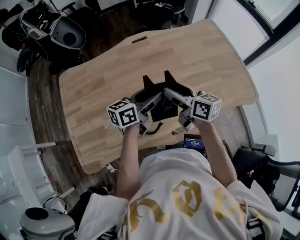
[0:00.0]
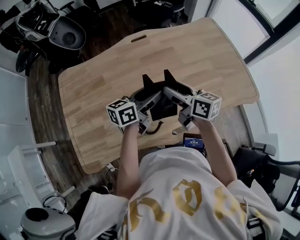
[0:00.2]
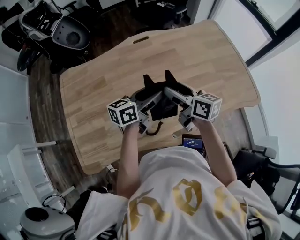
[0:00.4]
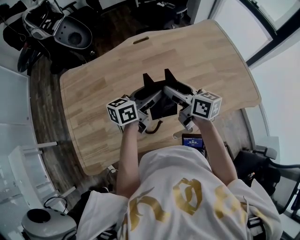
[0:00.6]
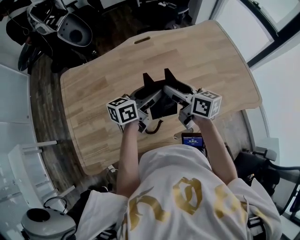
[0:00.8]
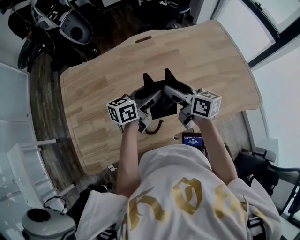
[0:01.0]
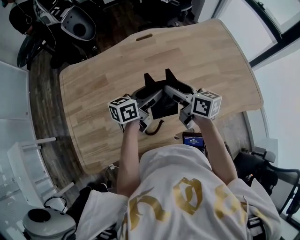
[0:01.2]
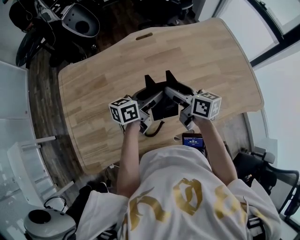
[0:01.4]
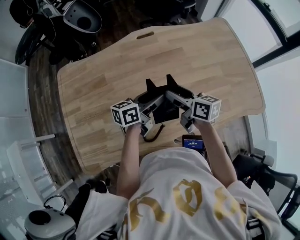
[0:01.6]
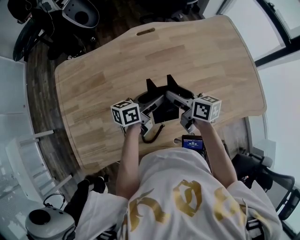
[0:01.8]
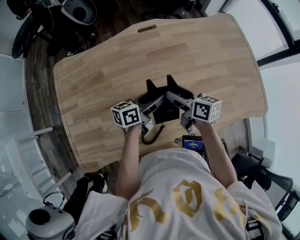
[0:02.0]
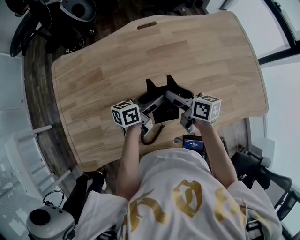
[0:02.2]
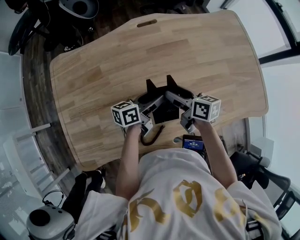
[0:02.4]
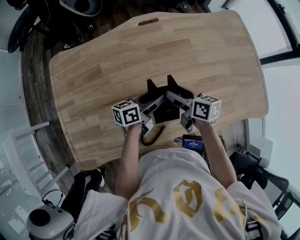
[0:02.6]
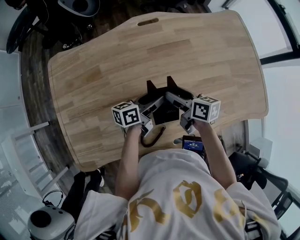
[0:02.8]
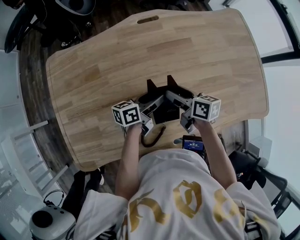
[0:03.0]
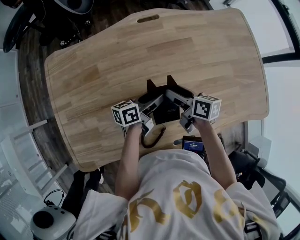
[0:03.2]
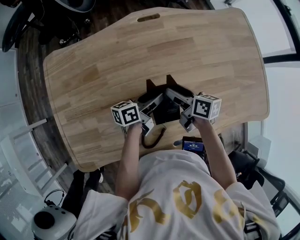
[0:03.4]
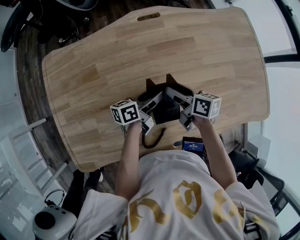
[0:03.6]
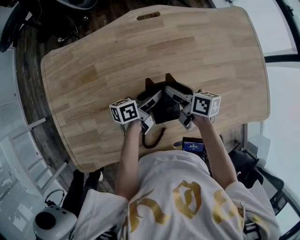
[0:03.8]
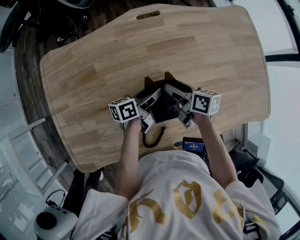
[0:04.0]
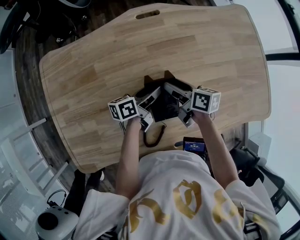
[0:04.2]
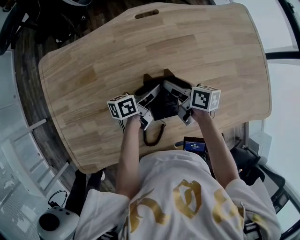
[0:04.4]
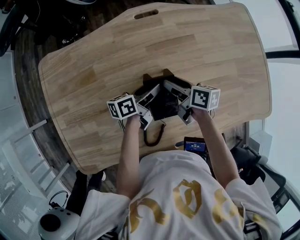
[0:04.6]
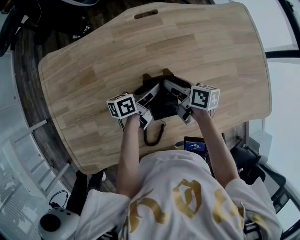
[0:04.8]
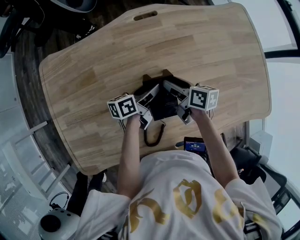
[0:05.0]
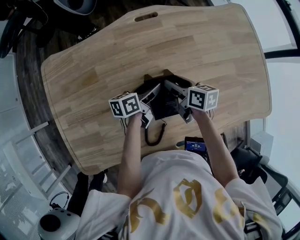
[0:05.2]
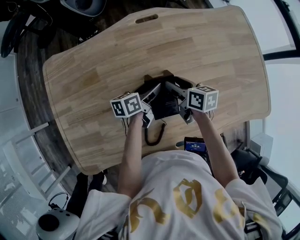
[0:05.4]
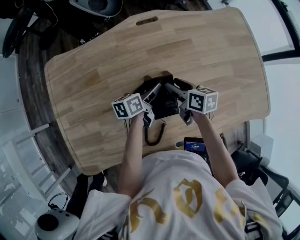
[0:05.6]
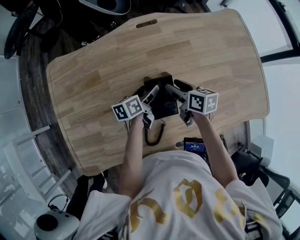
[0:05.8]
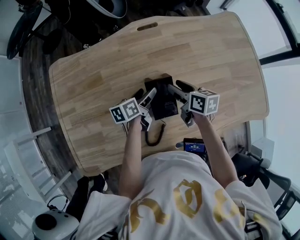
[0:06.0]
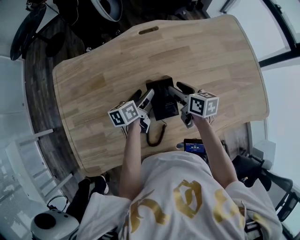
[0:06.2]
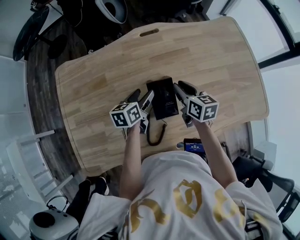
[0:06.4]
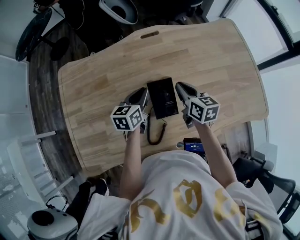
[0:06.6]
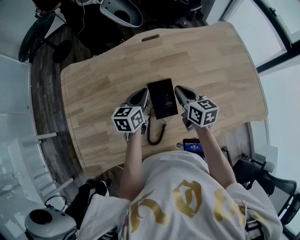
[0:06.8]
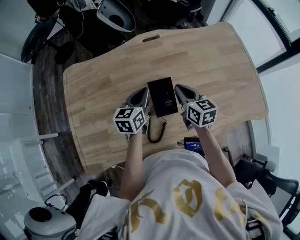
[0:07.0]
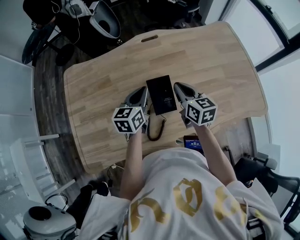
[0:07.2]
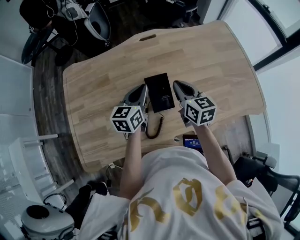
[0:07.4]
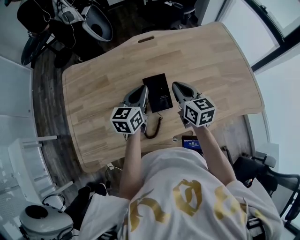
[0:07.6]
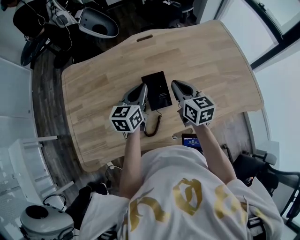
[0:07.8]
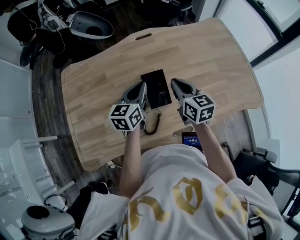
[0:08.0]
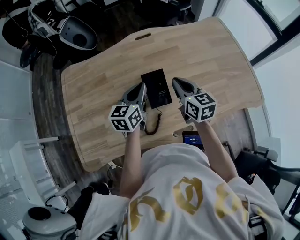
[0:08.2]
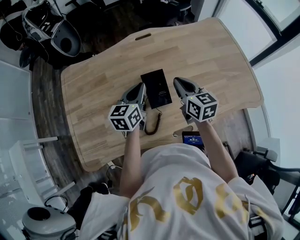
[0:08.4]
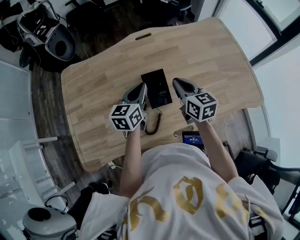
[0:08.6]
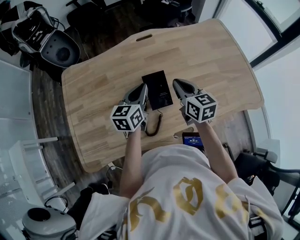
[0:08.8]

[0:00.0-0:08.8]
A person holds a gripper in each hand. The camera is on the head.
0:00.0 to 0:01.4: The right gripper changes place by some 5 cm.
0:01.4 to 0:03.0: The grippers both shift downward by approximately 10 cm.
0:03.0 to 0:04.4: Both grippers travel together forward, about 5 cm.
0:04.4 to 0:05.8: The grippers stay close to where they were, moving slightly.
0:05.8 to 0:07.4: The left gripper shifts approximately 15 cm upward, rotates roughly 40 degrees, and closes its fingers. Meanwhile the right gripper goes roughly 15 cm upward and backward, changes its angle by some 30 degrees, and closes its fingers.
0:07.4 to 0:08.8: There are only small adjustments of the grippers.

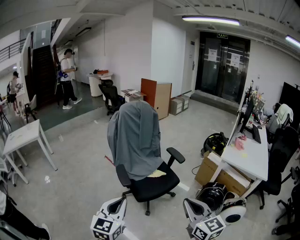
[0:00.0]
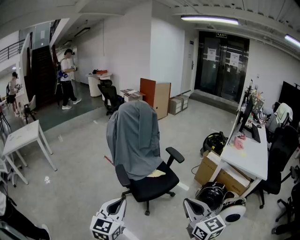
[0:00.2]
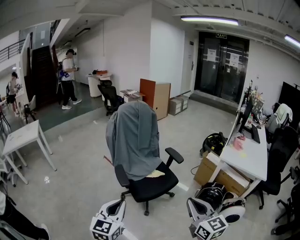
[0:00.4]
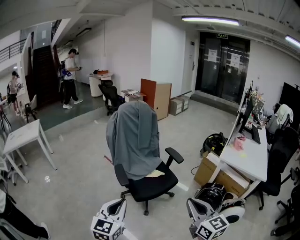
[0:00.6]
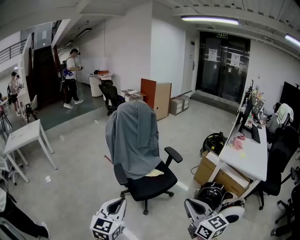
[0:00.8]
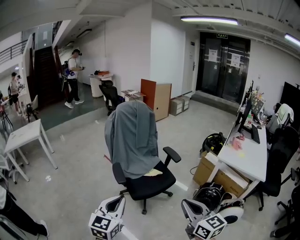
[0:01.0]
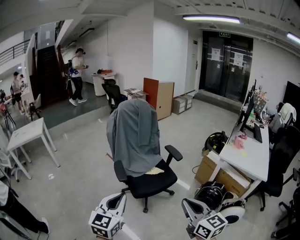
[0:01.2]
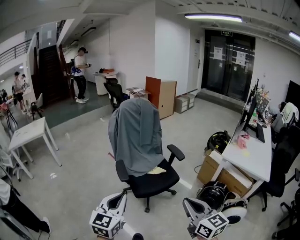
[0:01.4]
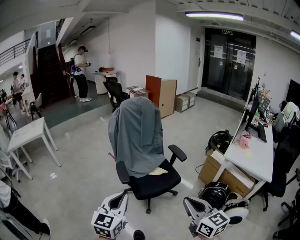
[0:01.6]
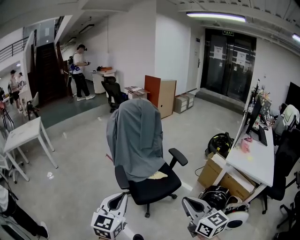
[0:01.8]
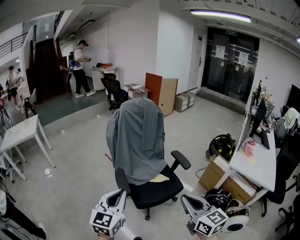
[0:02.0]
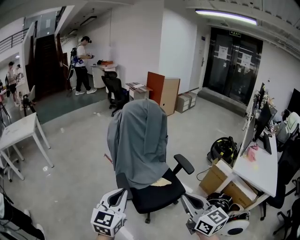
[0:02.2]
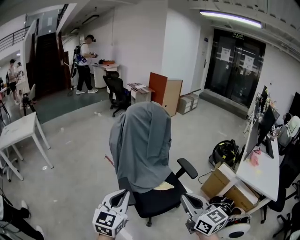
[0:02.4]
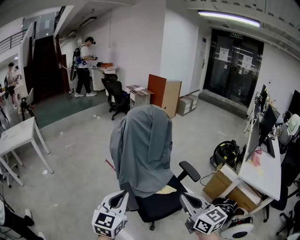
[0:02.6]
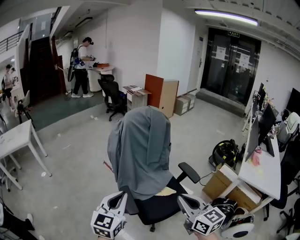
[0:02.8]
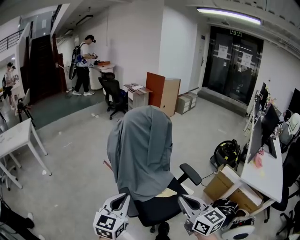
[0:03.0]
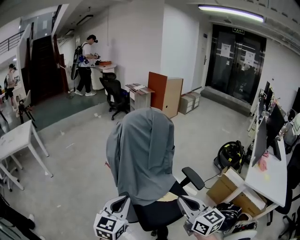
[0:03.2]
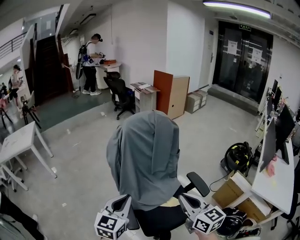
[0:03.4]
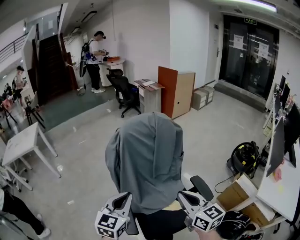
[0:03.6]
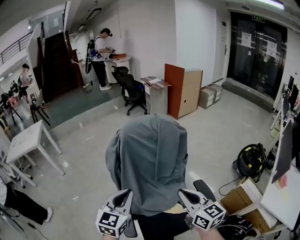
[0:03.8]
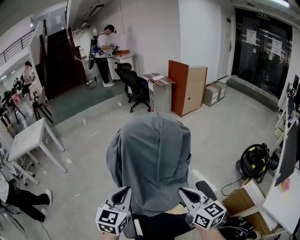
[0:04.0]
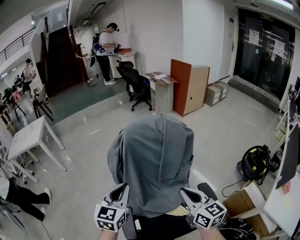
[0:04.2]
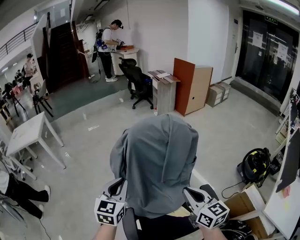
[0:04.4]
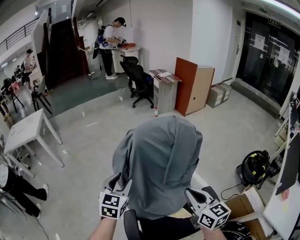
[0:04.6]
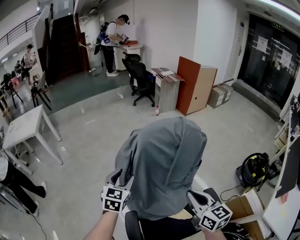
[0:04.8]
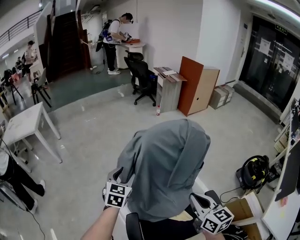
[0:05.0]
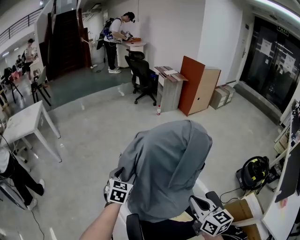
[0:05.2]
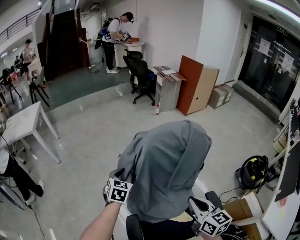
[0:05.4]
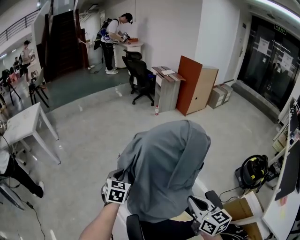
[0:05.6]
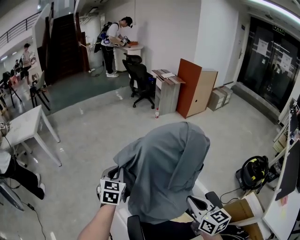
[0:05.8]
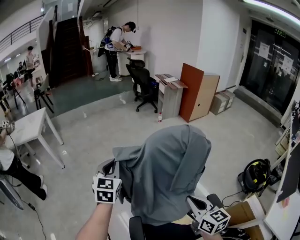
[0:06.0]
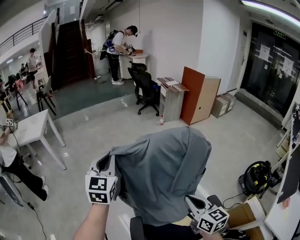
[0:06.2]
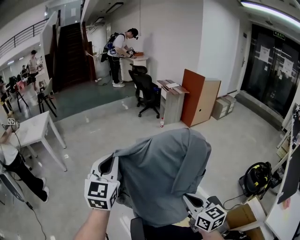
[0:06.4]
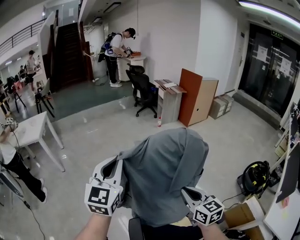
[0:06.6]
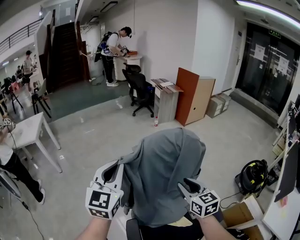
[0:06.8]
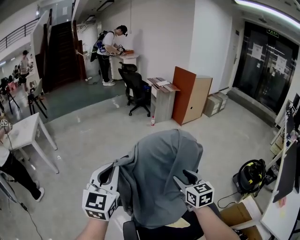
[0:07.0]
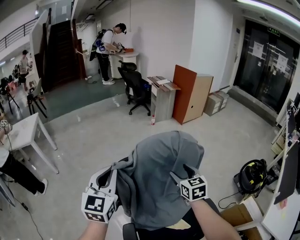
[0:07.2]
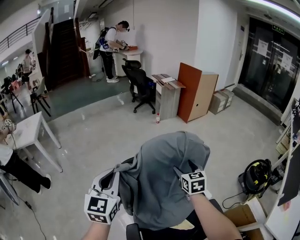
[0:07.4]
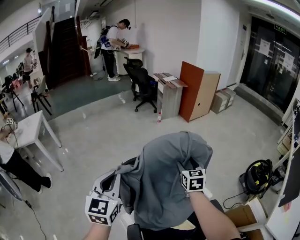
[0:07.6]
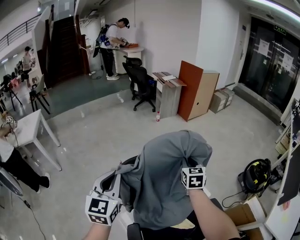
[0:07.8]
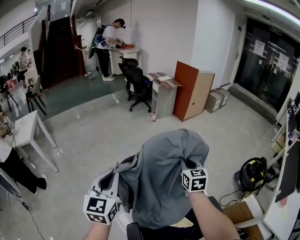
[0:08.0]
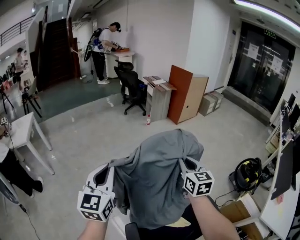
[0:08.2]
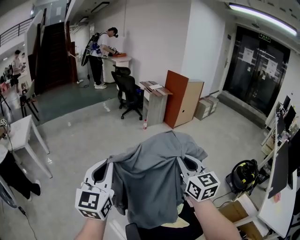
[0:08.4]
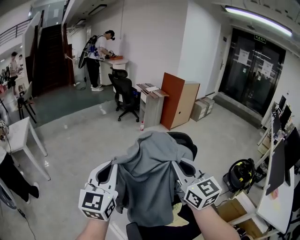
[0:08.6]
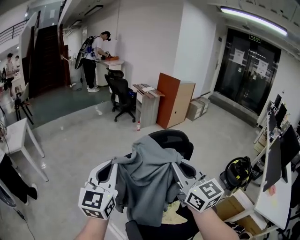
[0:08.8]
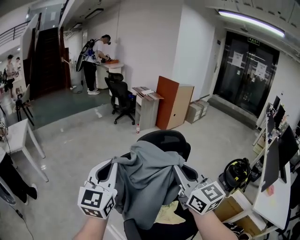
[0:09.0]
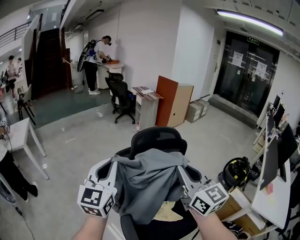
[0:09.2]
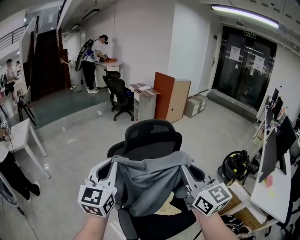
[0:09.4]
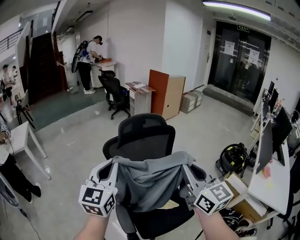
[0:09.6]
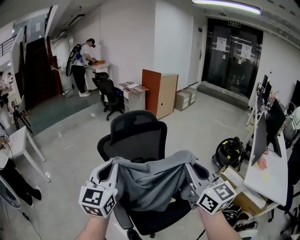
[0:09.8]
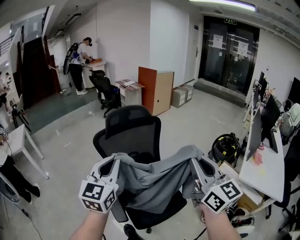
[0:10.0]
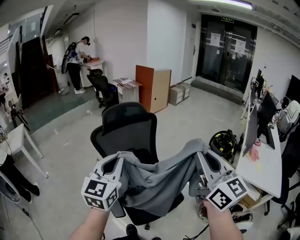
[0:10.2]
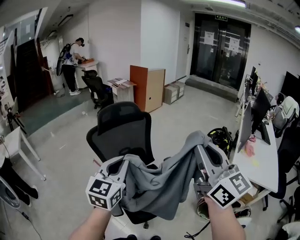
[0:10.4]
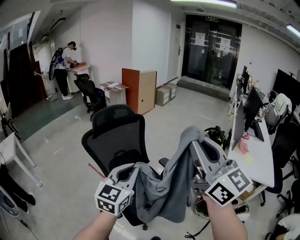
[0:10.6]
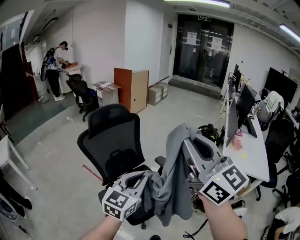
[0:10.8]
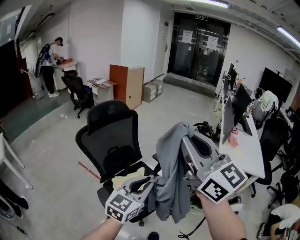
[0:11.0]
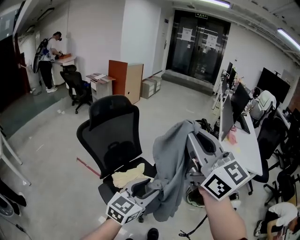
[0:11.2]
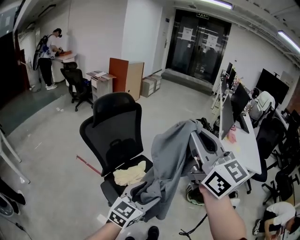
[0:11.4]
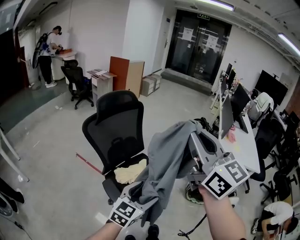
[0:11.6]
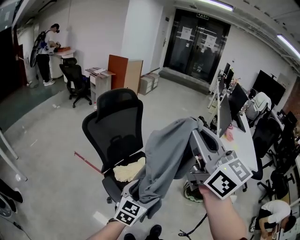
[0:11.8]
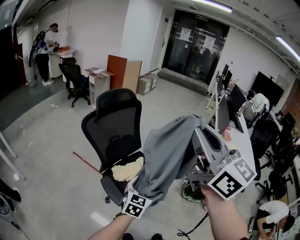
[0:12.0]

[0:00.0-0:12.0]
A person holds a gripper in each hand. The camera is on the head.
0:00.0 to 0:01.6: The left gripper changes place by about 5 cm, while the right gripper changes place by about 5 cm.
0:01.6 to 0:03.0: The grippers both shift forward by some 35 cm.
0:03.0 to 0:04.4: Both grippers travel together forward, some 30 cm.
0:04.4 to 0:06.0: The left gripper shifts about 20 cm forward and to the left, and opens, then closes once more. The right gripper goes some 5 cm to the left.
0:06.0 to 0:07.6: The right gripper travels forward by approximately 25 cm, changes its angle by about 30 degrees, and opens up; the left gripper heads to the right, covering some 5 cm, and reaches roughly 10 cm upward, then returns.
0:07.6 to 0:09.0: The left gripper travels upward and backward by approximately 15 cm. The right gripper shifts approximately 35 cm backward and upward, changes its angle by roughly 30 degrees, and closes its fingers.
0:09.0 to 0:10.4: The right gripper goes some 40 cm backward and to the right. Meanwhile the left gripper travels to the right and backward by some 35 cm, and changes its angle by some 20 degrees.
0:10.4 to 0:12.0: The left gripper travels downward and backward by about 25 cm, turns by about 30 degrees, and opens up, while the right gripper goes approximately 20 cm to the left and backward.

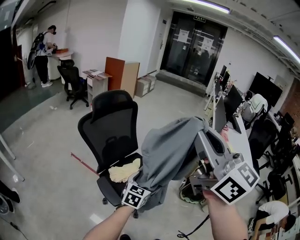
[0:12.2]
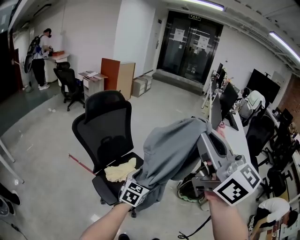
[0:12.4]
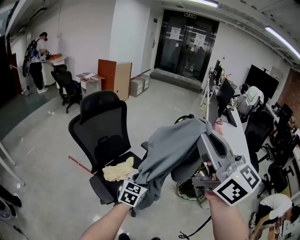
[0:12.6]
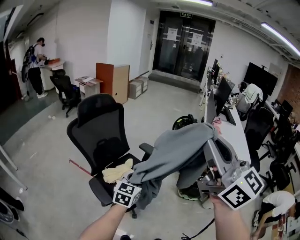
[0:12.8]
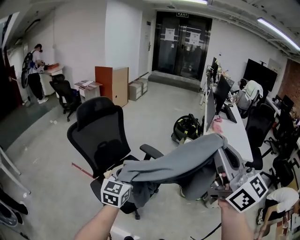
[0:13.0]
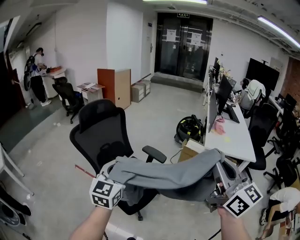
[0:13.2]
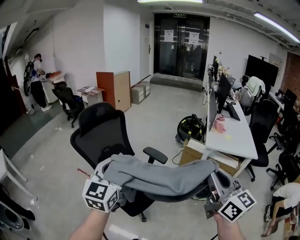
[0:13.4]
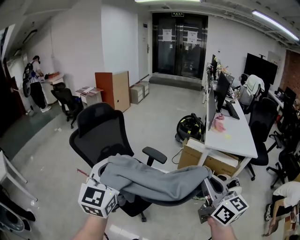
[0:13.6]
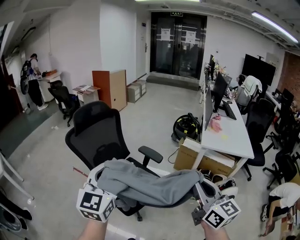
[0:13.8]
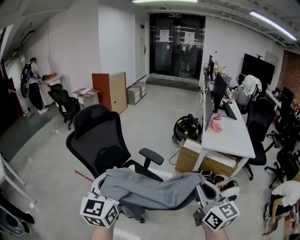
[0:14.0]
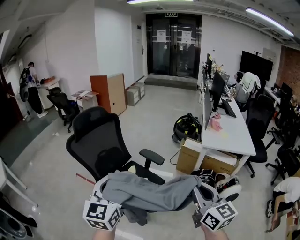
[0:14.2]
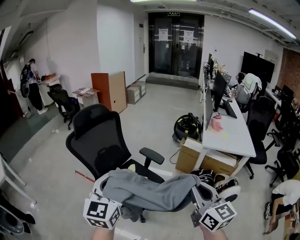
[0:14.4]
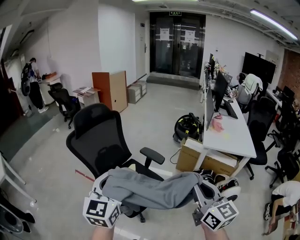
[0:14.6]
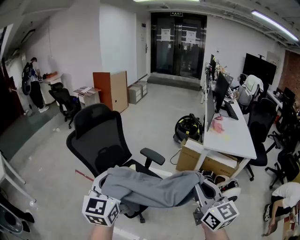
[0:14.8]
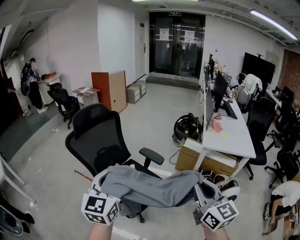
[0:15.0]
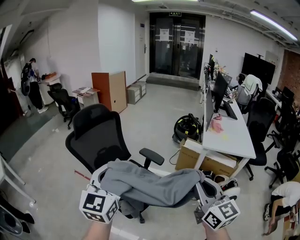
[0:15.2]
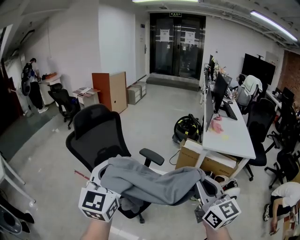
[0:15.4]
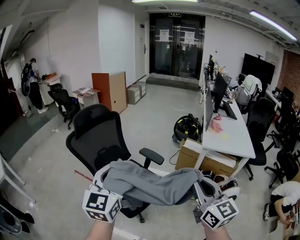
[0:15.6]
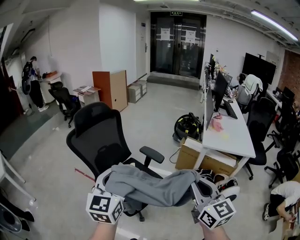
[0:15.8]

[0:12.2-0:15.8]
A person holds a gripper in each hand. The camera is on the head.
0:12.2 to 0:14.0: The right gripper shifts some 30 cm to the right and downward, and swivels some 30 degrees; the left gripper moves upward, some 25 cm, turns by approximately 30 degrees, and closes up.
0:14.0 to 0:15.8: The grippers move only a little.
